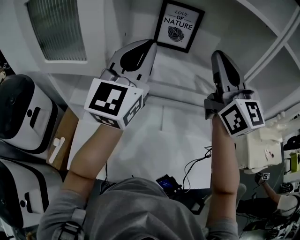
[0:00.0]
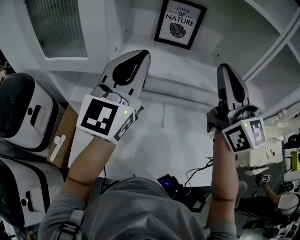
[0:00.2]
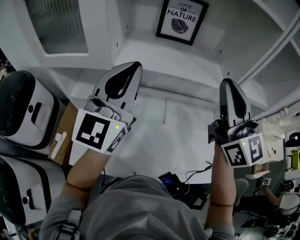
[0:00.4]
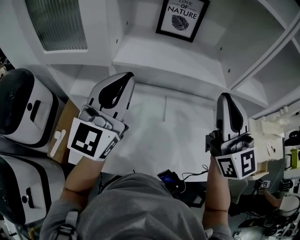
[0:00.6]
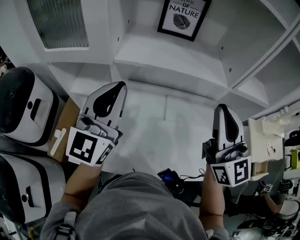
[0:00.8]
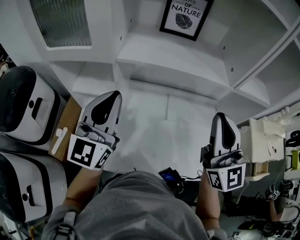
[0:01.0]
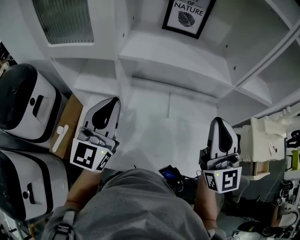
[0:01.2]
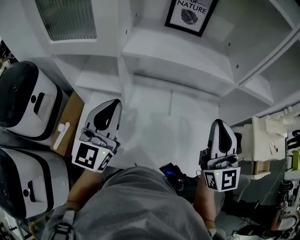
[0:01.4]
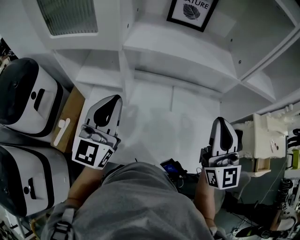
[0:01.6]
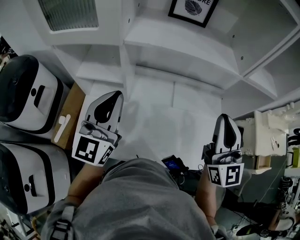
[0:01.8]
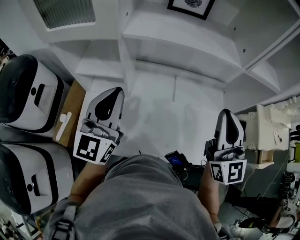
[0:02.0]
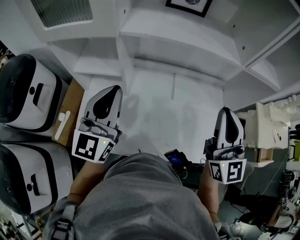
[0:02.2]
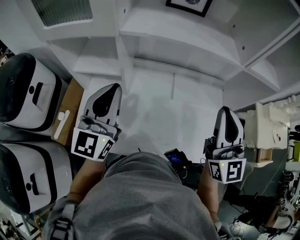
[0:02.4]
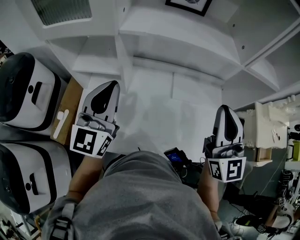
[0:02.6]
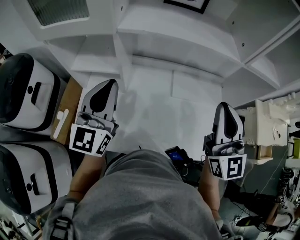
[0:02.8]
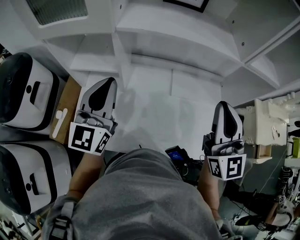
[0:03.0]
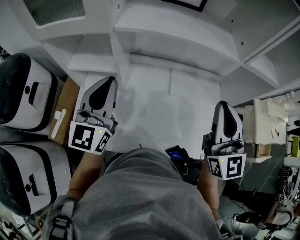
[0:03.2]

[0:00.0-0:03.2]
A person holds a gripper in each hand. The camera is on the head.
0:00.0 to 0:01.6: The left gripper heads downward, backward and to the left, covering some 25 cm. Meanwhile the right gripper heads downward and backward, covering about 25 cm.
0:01.6 to 0:03.2: The grippers make only small movements.

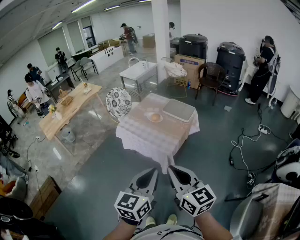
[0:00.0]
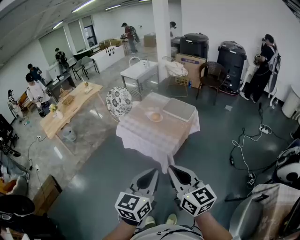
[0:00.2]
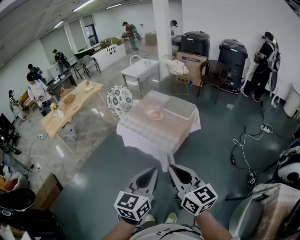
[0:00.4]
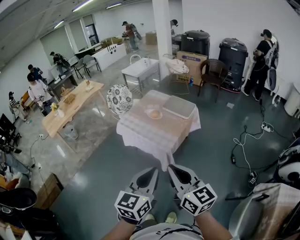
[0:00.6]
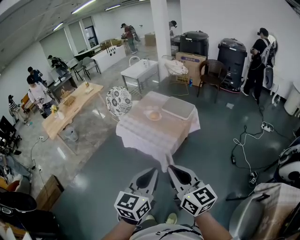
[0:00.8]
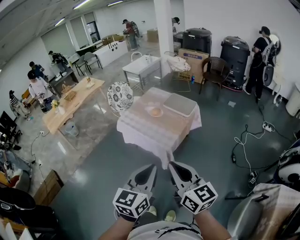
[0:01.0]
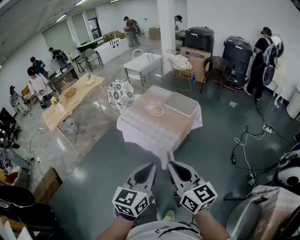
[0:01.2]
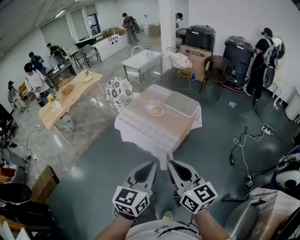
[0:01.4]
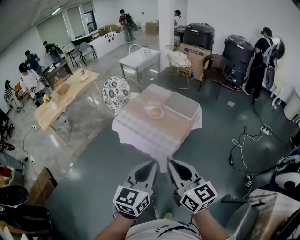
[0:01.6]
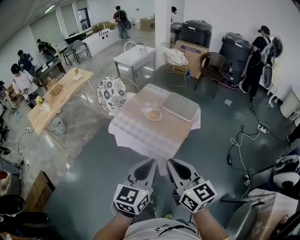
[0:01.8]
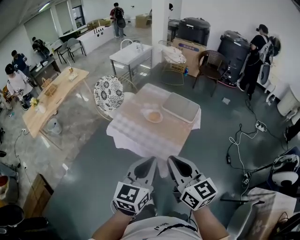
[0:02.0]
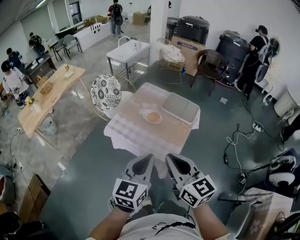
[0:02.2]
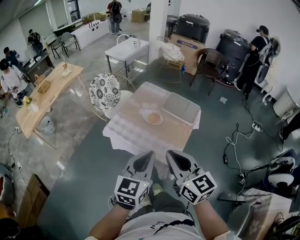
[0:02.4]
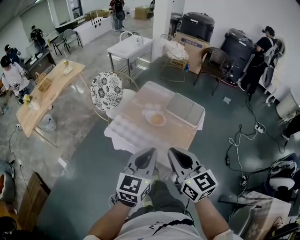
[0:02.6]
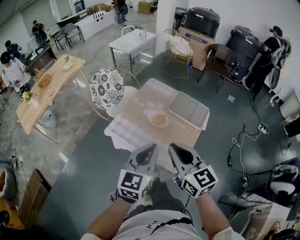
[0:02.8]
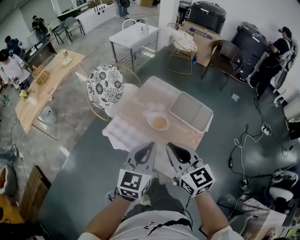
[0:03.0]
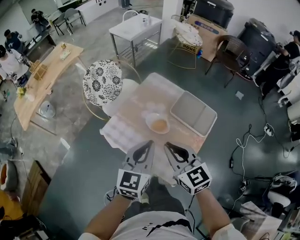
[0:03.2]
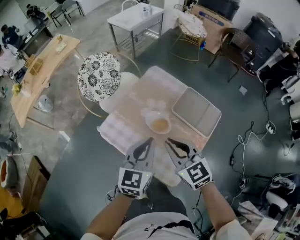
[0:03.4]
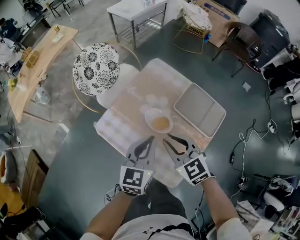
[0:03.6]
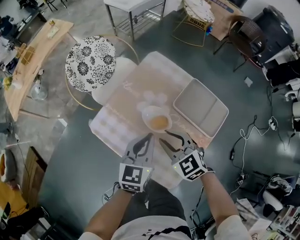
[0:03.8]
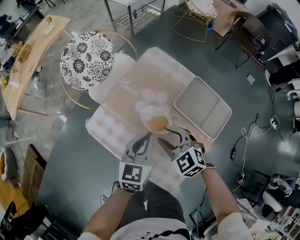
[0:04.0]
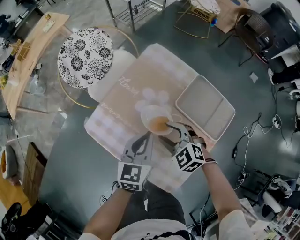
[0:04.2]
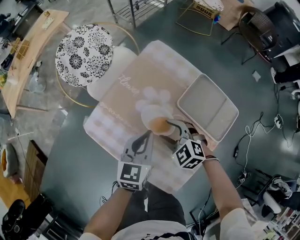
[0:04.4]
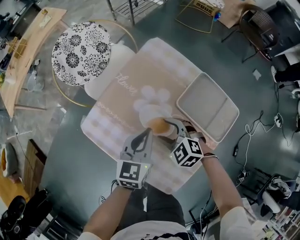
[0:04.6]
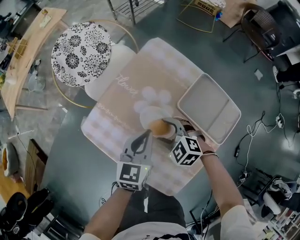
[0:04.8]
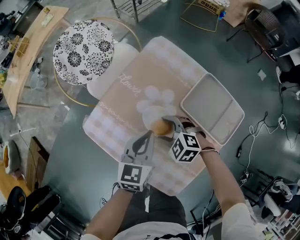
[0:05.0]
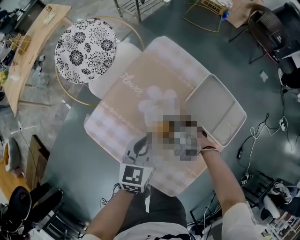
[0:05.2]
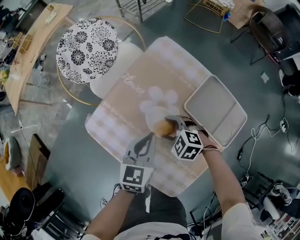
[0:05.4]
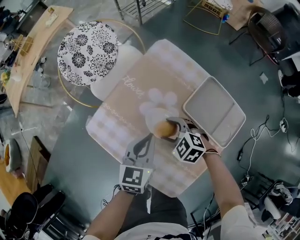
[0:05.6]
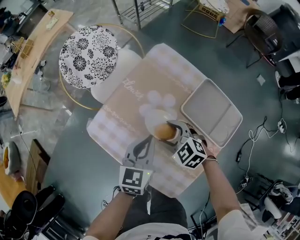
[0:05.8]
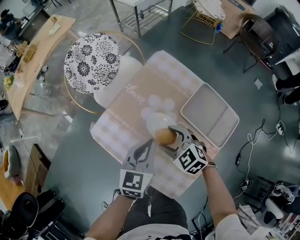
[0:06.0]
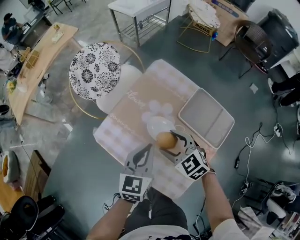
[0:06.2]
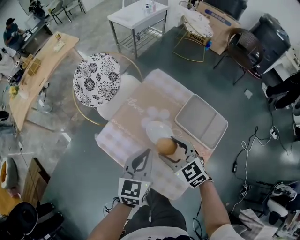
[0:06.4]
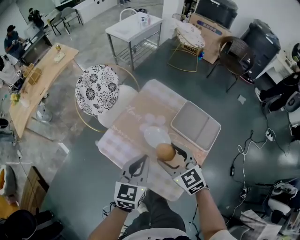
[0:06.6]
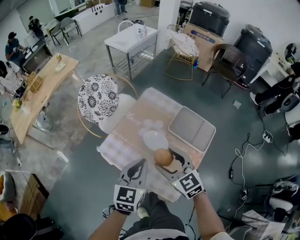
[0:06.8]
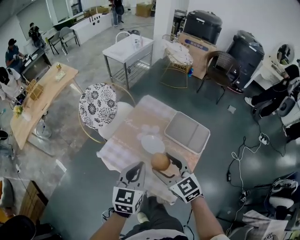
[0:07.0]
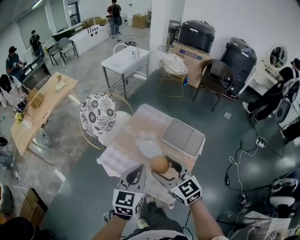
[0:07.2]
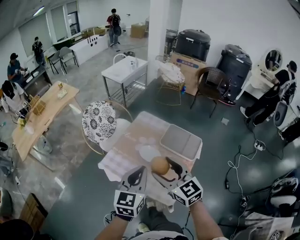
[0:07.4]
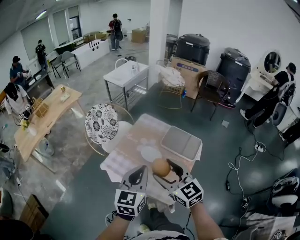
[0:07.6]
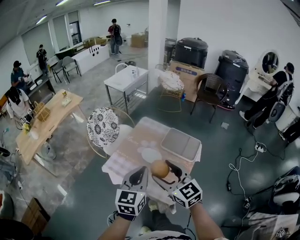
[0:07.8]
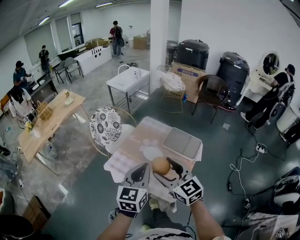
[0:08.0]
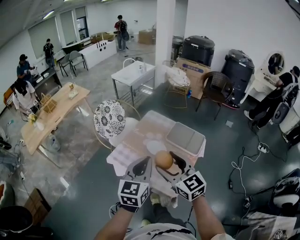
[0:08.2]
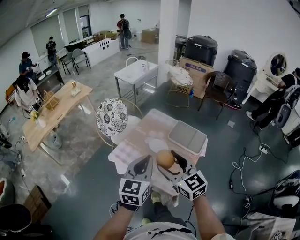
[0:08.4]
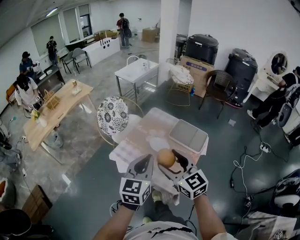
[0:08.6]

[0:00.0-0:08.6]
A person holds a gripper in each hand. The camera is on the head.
0:00.0 to 0:01.4: The right gripper moves approximately 5 cm. Meanwhile the left gripper goes roughly 5 cm forward.
0:01.4 to 0:02.8: Both grippers travel together forward, roughly 35 cm.
0:02.8 to 0:04.4: The grippers both shift downward and forward by approximately 40 cm. The right gripper tilts its fingers some 40 degrees downward, and opens up. The left gripper swivels roughly 20 degrees.
0:05.8 to 0:07.2: The grippers both shift upward and backward by about 30 cm. The right gripper rotates roughly 40 degrees.
0:07.2 to 0:08.6: Both grippers move backward and upward, approximately 10 cm.

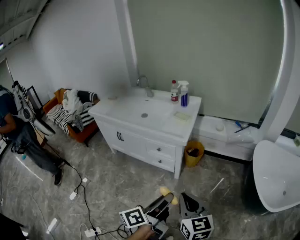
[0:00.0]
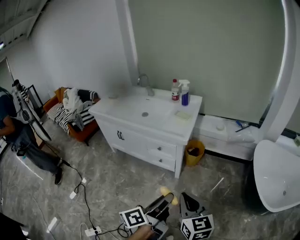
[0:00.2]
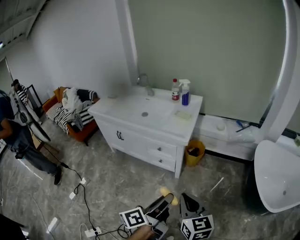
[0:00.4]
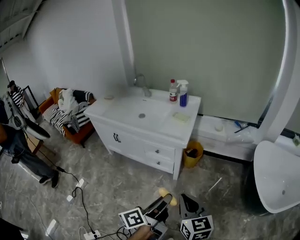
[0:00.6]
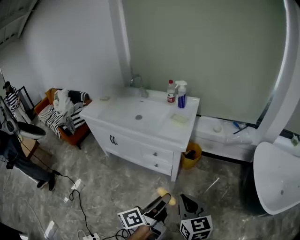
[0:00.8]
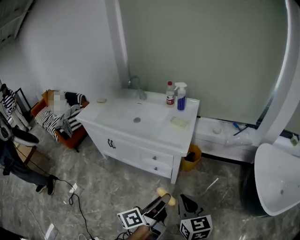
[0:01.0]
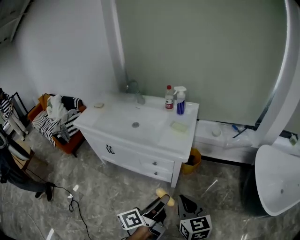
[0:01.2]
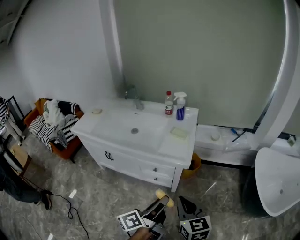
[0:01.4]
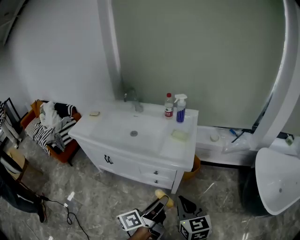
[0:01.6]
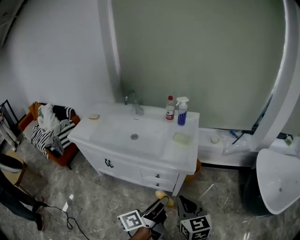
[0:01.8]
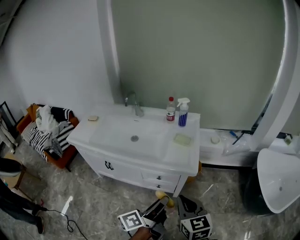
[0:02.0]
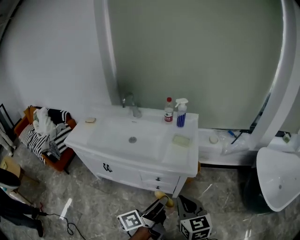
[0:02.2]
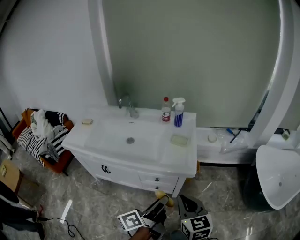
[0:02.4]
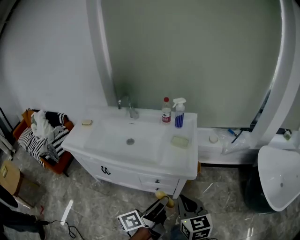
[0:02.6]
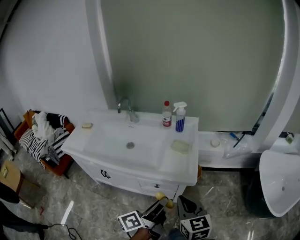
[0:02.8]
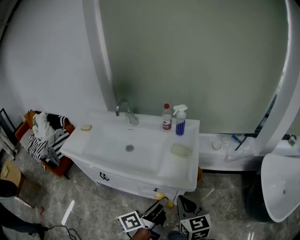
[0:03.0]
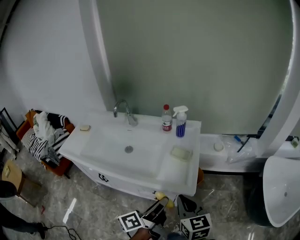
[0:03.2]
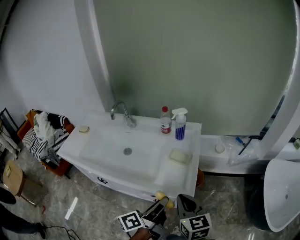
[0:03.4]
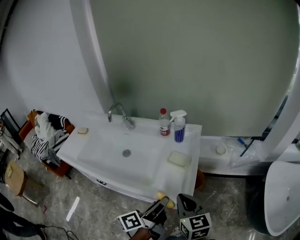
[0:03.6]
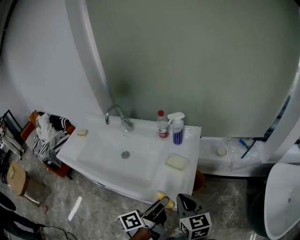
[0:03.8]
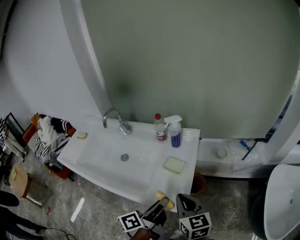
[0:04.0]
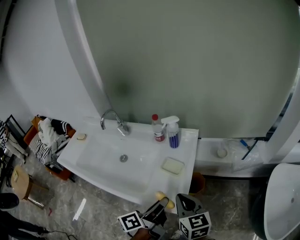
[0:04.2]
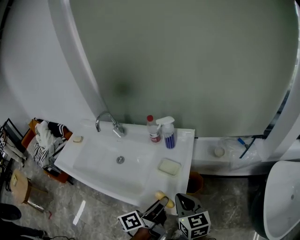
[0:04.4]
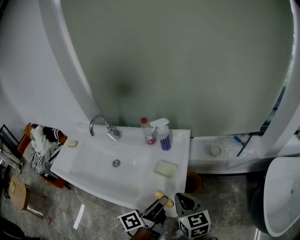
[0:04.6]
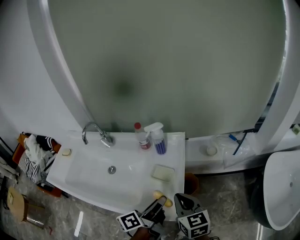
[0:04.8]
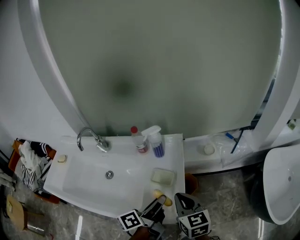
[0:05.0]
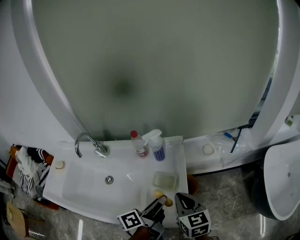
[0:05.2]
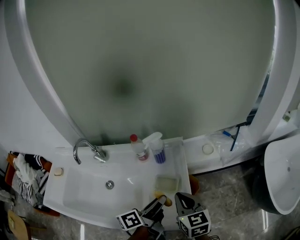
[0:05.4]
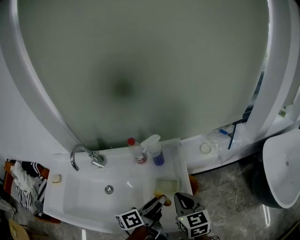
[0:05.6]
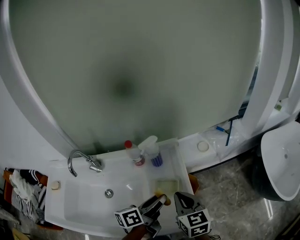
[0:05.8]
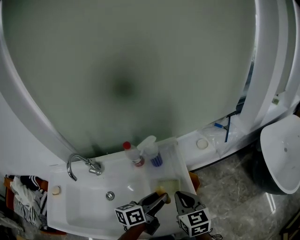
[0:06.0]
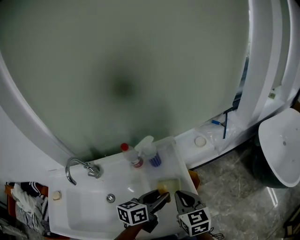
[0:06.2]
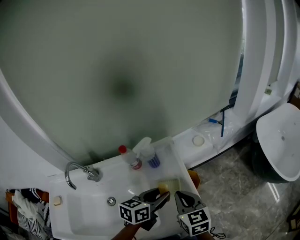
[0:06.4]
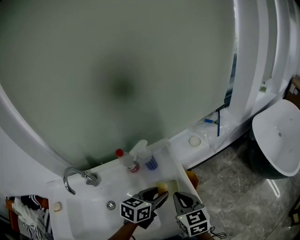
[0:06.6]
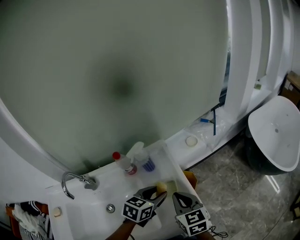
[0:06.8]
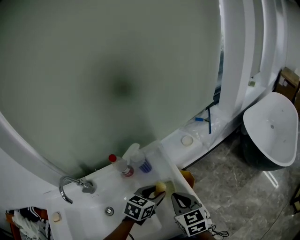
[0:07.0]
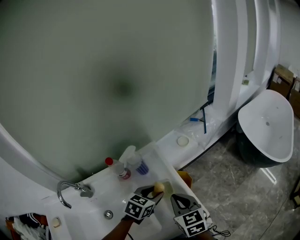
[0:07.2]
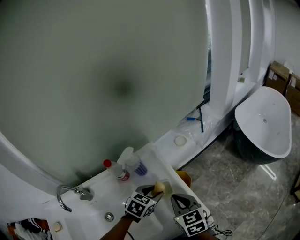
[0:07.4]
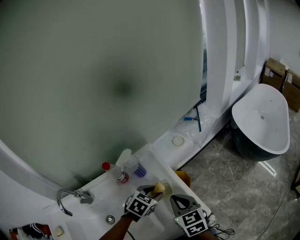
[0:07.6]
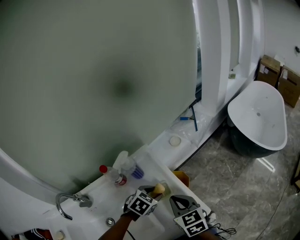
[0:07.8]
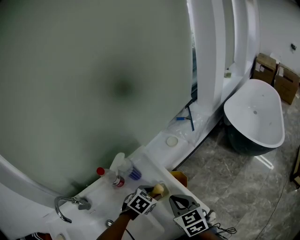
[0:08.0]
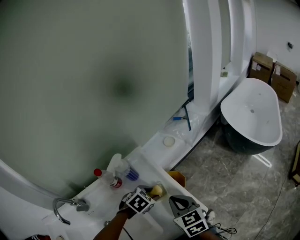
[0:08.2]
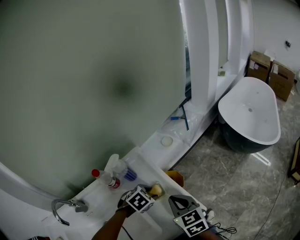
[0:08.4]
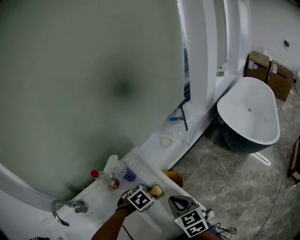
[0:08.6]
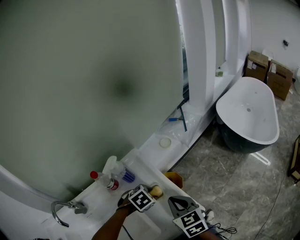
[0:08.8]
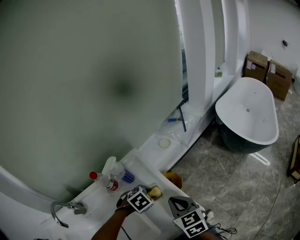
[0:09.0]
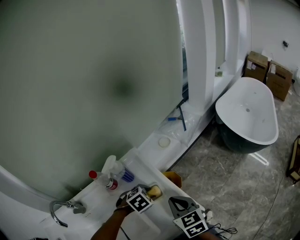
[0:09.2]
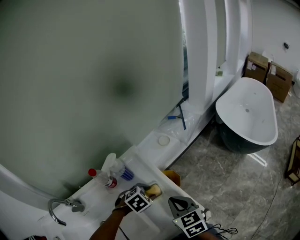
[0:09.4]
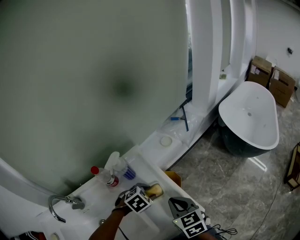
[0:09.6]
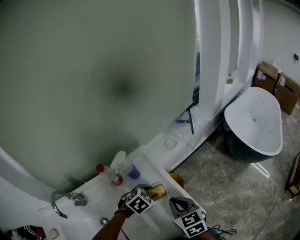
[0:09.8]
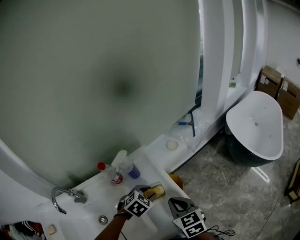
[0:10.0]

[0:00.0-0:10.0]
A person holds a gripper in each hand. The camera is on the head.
0:00.0 to 0:01.4: Both grippers travel together forward and to the left, roughly 20 cm.
0:01.4 to 0:02.8: The grippers both shift forward and to the left by about 15 cm.
0:02.8 to 0:04.2: Both grippers move forward and to the right, some 20 cm.
0:04.2 to 0:05.8: The left gripper shifts by roughly 15 cm, and changes its angle by roughly 40 degrees. Meanwhile the right gripper changes place by approximately 10 cm, and rotates some 20 degrees.
0:05.8 to 0:07.2: The left gripper shifts approximately 10 cm downward and forward, and twists about 60 degrees clockwise, seen from behind.
0:07.2 to 0:08.6: The left gripper shifts some 5 cm downward, and changes its angle by about 40 degrees.
0:08.6 to 0:10.0: The grippers stay close to where they were, moving slightly.

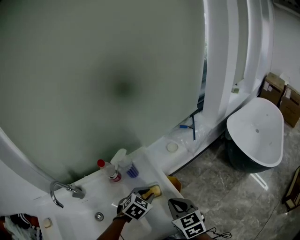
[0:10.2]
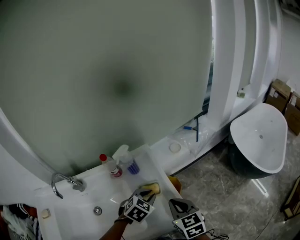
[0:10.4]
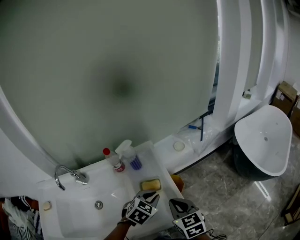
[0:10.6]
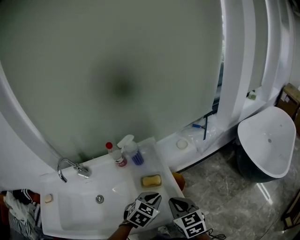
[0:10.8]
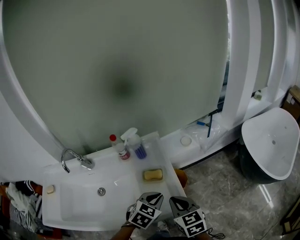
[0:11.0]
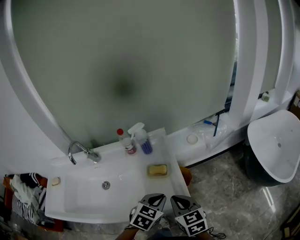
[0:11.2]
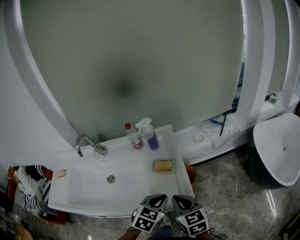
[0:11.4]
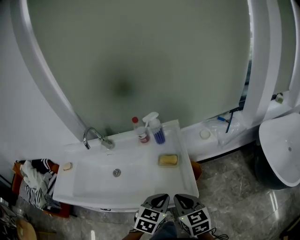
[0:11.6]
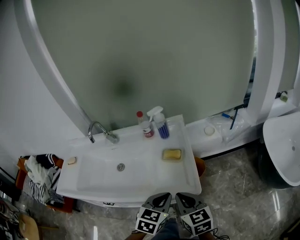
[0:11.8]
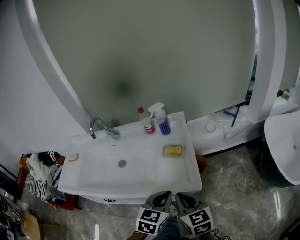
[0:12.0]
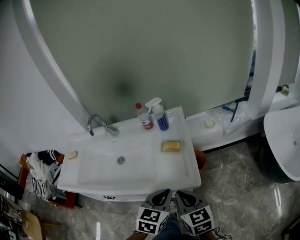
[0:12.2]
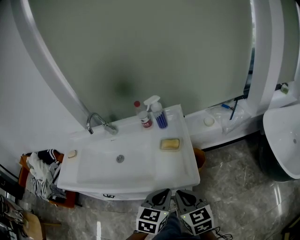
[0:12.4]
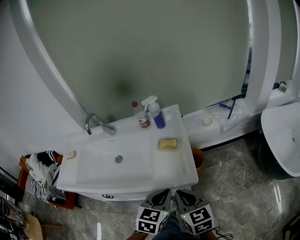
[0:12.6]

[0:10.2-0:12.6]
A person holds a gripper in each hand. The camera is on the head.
0:10.2 to 0:11.4: The right gripper is displaced backward by some 10 cm. Meanwhile the left gripper shifts about 15 cm backward, and changes its angle by approximately 30 degrees.
0:11.4 to 0:12.6: Both grippers travel together backward, roughly 10 cm.
